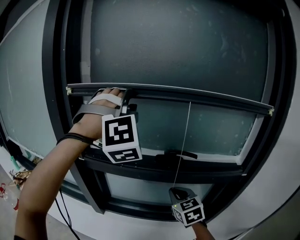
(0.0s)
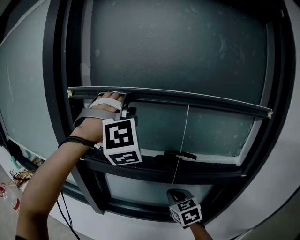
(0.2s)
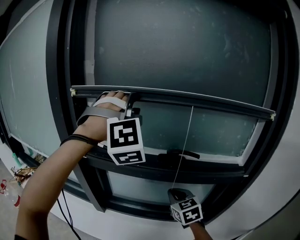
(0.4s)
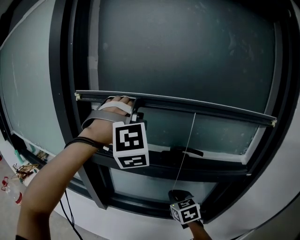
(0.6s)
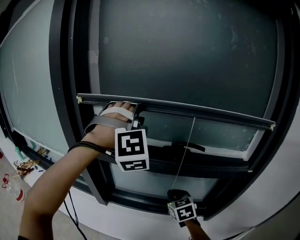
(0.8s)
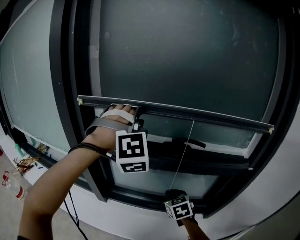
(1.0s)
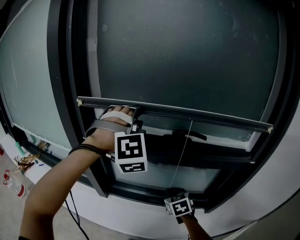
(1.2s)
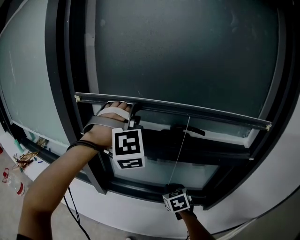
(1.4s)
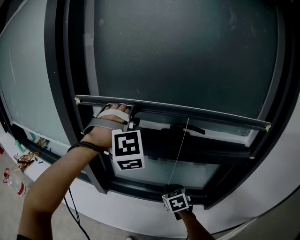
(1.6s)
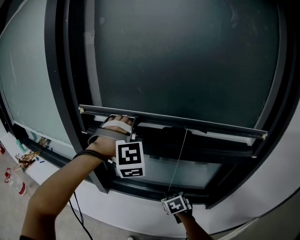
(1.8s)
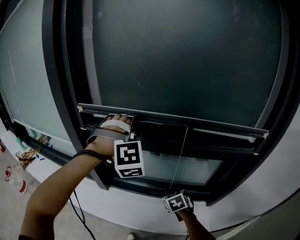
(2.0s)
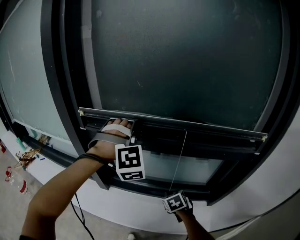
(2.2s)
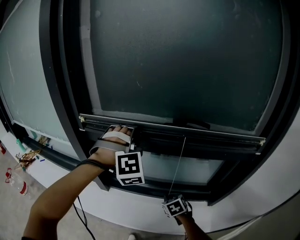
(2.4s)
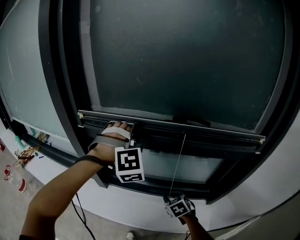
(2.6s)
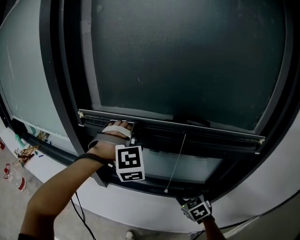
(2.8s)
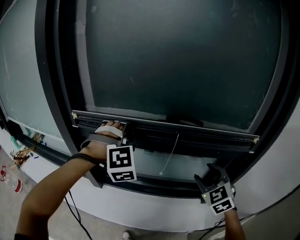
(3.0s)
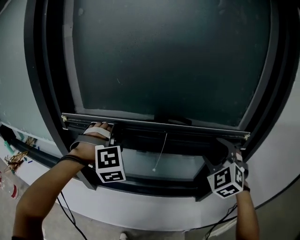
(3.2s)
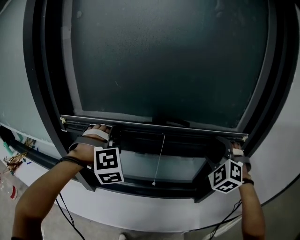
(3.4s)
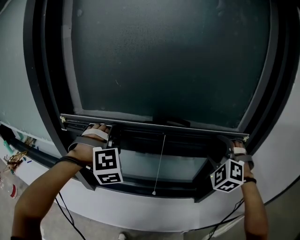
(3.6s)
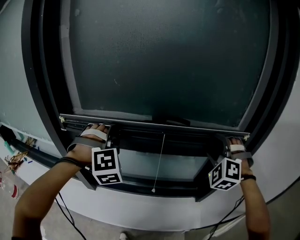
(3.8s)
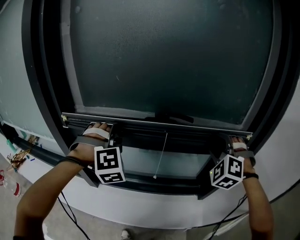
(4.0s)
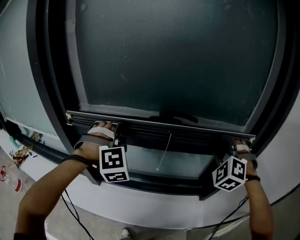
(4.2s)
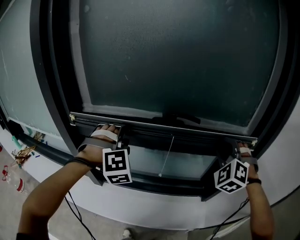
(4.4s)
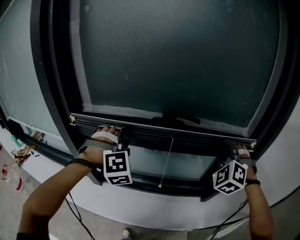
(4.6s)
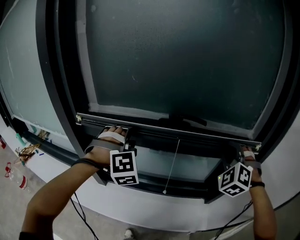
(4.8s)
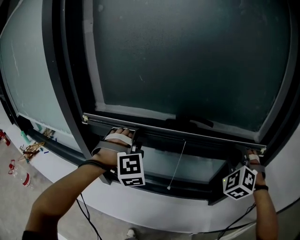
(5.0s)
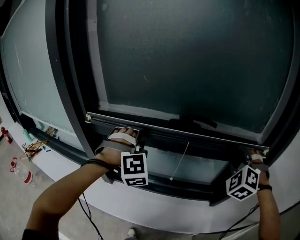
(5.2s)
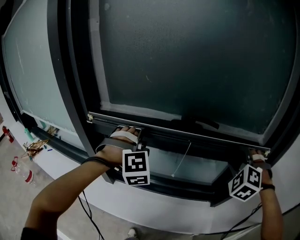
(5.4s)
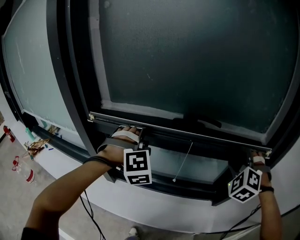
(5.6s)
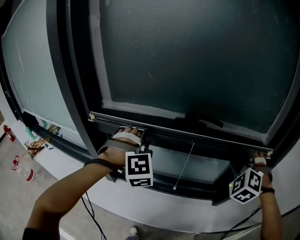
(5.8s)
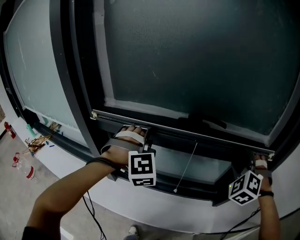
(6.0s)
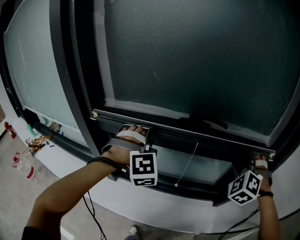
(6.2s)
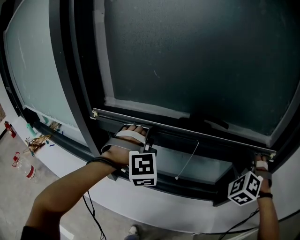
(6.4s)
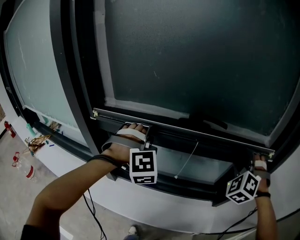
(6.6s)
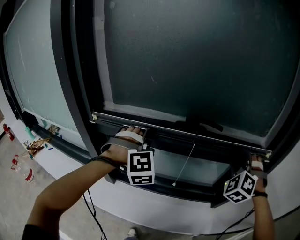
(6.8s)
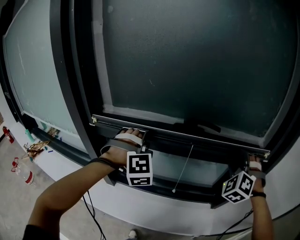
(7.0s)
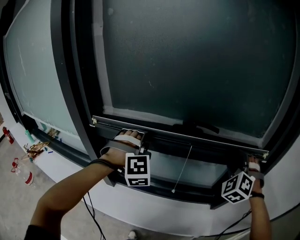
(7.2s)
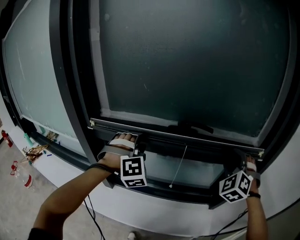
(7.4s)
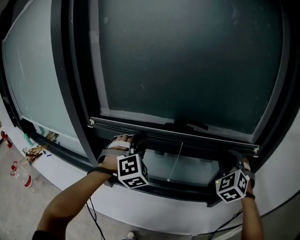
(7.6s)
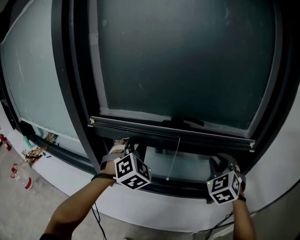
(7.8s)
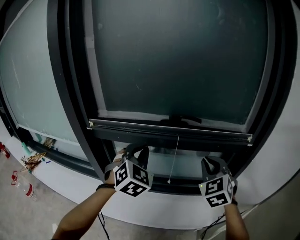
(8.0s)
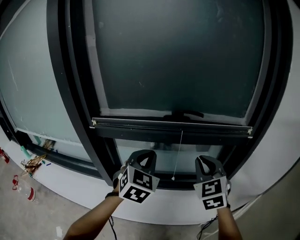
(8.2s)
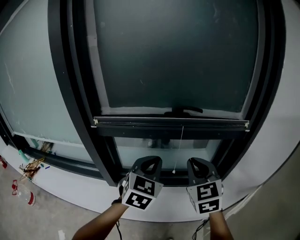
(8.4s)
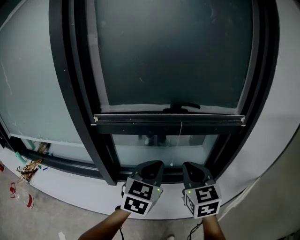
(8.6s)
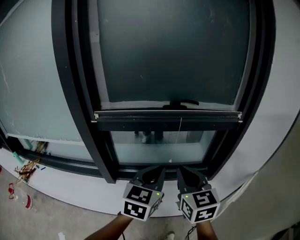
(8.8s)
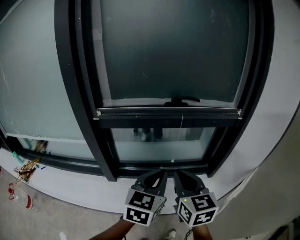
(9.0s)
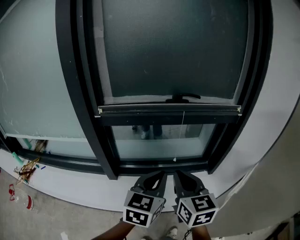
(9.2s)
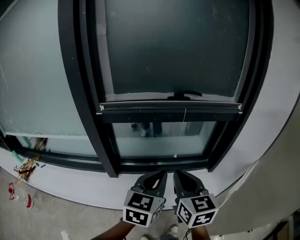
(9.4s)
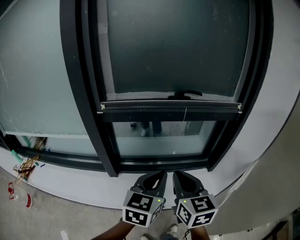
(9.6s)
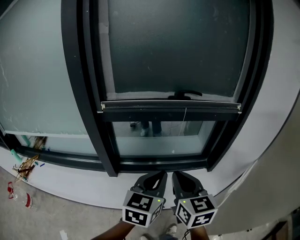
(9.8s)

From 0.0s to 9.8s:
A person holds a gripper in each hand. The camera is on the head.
From 0.0s to 1.4s: Both grippers move downward, about 15 cm.
From 1.4s to 2.8s: The left gripper shifts some 15 cm downward. Meanwhile the right gripper shifts approximately 10 cm backward and to the right, and opens its fingers.
From 2.8s to 4.2s: The right gripper shifts approximately 30 cm upward and to the right, and rolls counterclockwise, seen from behind, by roughly 50 degrees.
From 4.2s to 5.6s: The right gripper closes, then opens again.
From 5.6s to 7.0s: The grippers make only small movements.
From 7.0s to 8.4s: The left gripper goes about 20 cm backward, rolls counterclockwise, seen from behind, by approximately 60 degrees, and closes its fingers, while the right gripper shifts some 25 cm backward and to the left, rotates around the line of its fingers by roughly 50 degrees, clockwise from behind, and closes its fingers.
From 8.4s to 9.8s: The right gripper moves backward and to the left, roughly 25 cm, and swivels some 20 degrees, while the left gripper moves backward, roughly 20 cm, and rotates roughly 20 degrees.

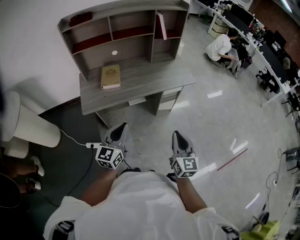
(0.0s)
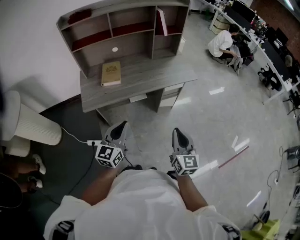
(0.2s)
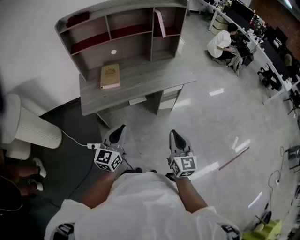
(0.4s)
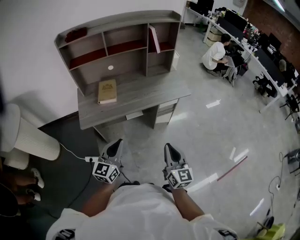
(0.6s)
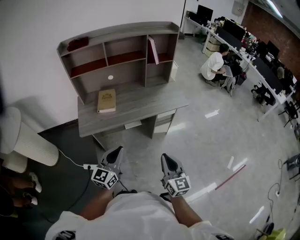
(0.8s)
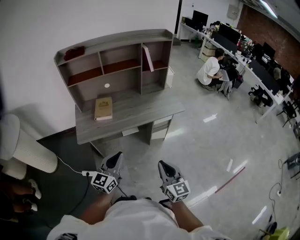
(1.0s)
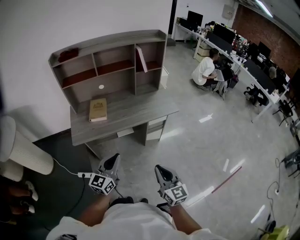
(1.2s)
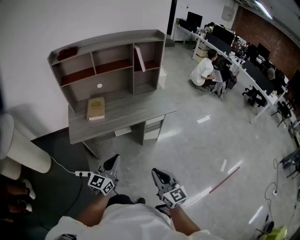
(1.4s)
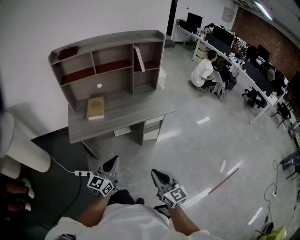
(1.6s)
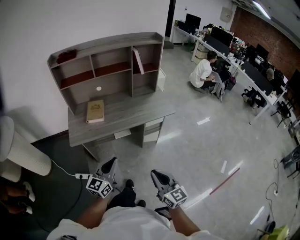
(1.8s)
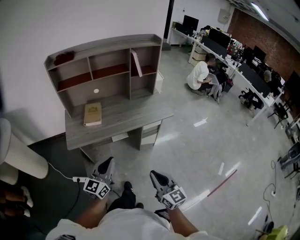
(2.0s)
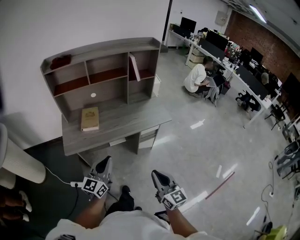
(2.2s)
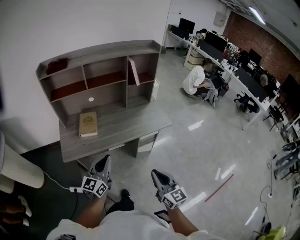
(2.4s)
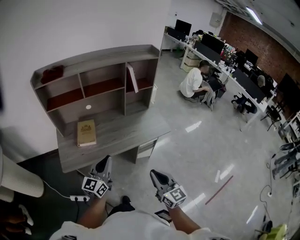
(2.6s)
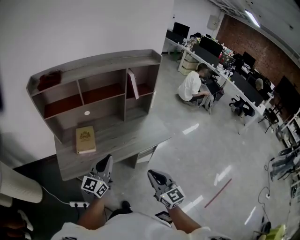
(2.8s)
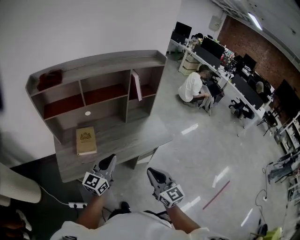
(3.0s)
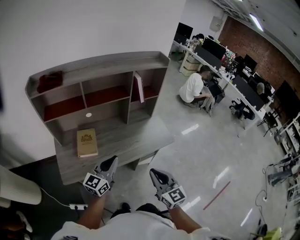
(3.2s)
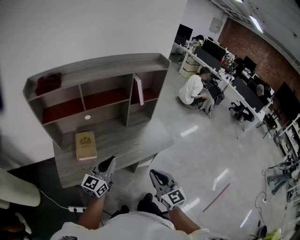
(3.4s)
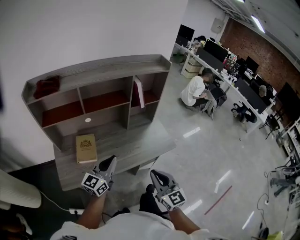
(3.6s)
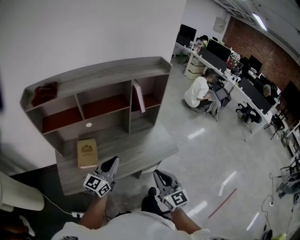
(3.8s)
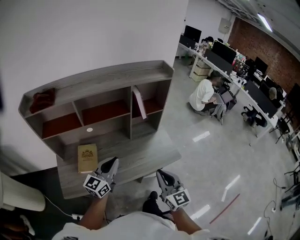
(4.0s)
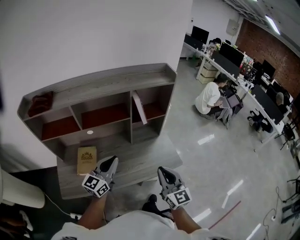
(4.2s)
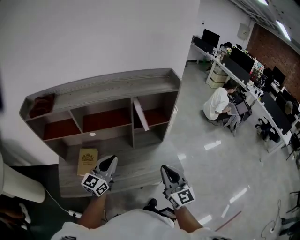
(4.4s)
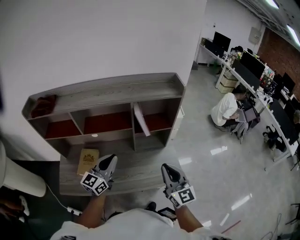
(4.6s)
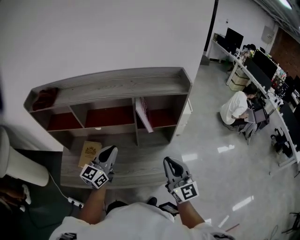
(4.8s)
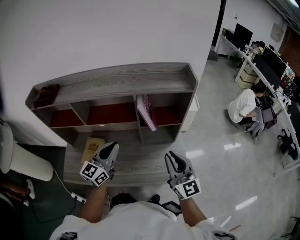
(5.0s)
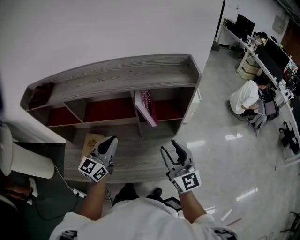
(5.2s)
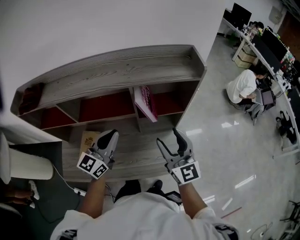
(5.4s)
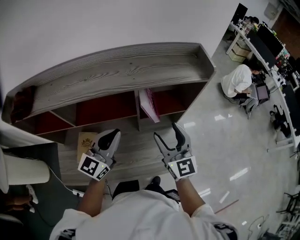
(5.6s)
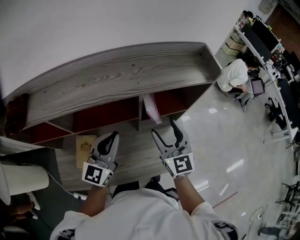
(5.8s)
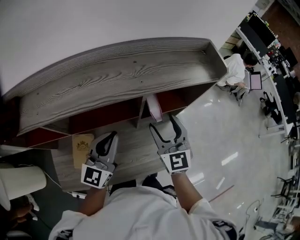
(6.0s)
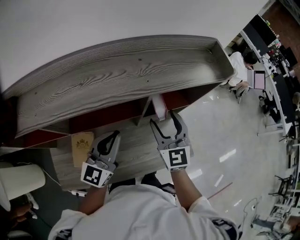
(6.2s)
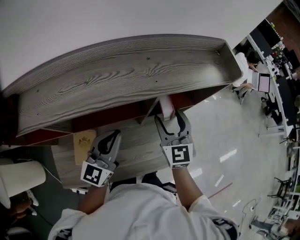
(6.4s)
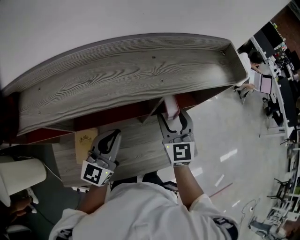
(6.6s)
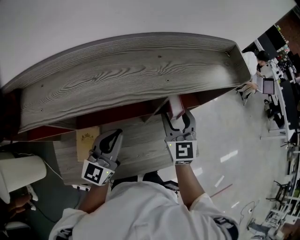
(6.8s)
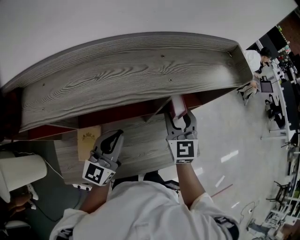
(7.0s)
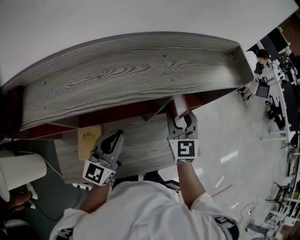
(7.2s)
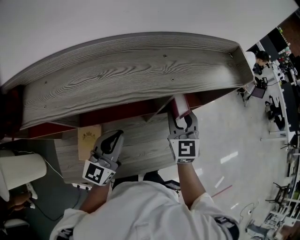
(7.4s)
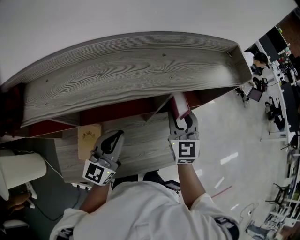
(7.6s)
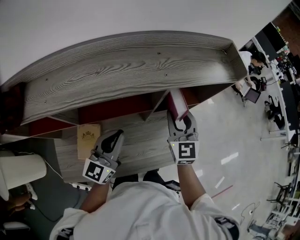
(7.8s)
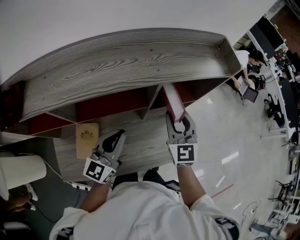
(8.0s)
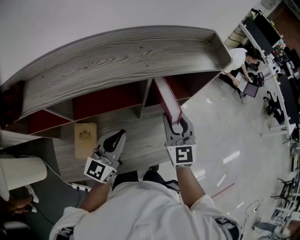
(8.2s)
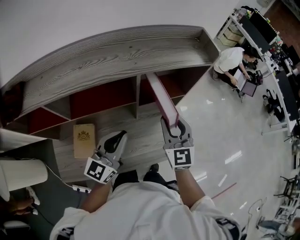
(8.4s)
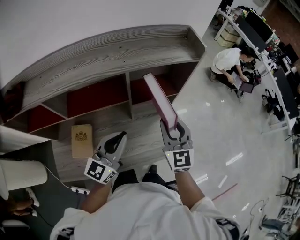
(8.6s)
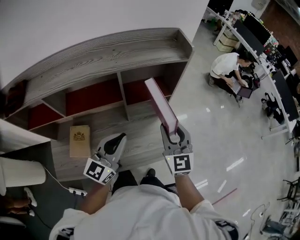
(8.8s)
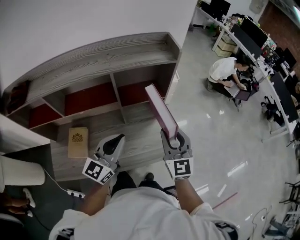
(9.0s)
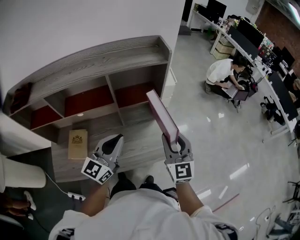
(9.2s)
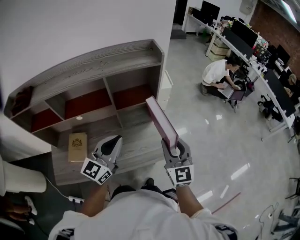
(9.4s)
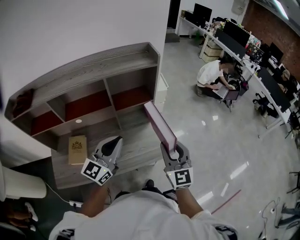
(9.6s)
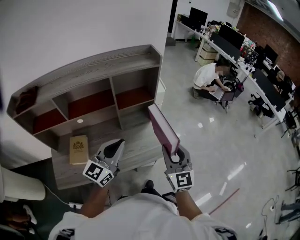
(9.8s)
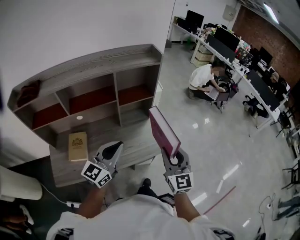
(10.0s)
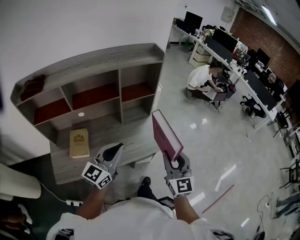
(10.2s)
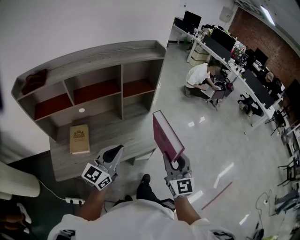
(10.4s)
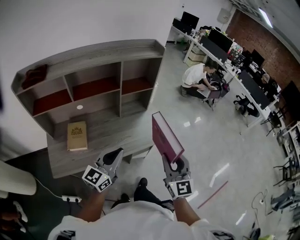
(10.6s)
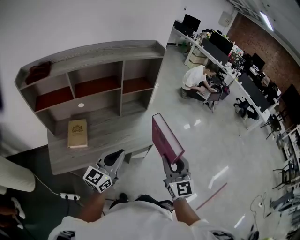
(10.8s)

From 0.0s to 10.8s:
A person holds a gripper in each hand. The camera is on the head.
From 0.0s to 1.6s: The left gripper is displaced to the right by roughly 10 cm, while the right gripper is displaced backward by roughly 5 cm, and changes its angle by roughly 20 degrees.
From 1.6s to 3.0s: Both grippers travel together forward, some 25 cm.
From 3.0s to 4.6s: The left gripper heads forward, covering approximately 25 cm. Meanwhile the right gripper shifts some 30 cm forward and to the right.
From 4.6s to 6.2s: The right gripper moves forward and to the left, approximately 25 cm, rotates approximately 20 degrees, and opens, while the left gripper travels forward by some 15 cm.
From 6.2s to 7.8s: The right gripper closes.
From 7.8s to 9.2s: The two grippers go about 20 cm to the right and backward.
From 9.2s to 10.8s: The two grippers go some 25 cm backward.

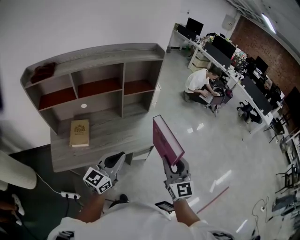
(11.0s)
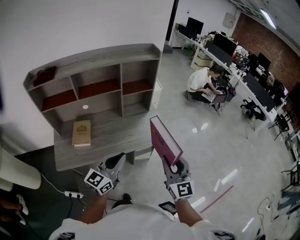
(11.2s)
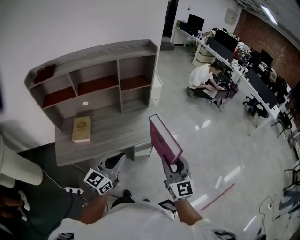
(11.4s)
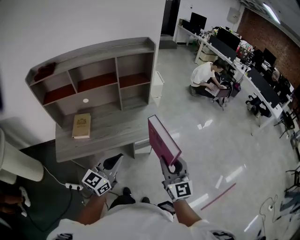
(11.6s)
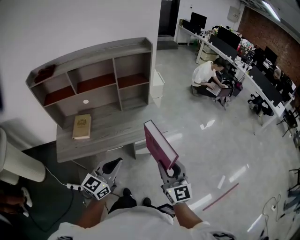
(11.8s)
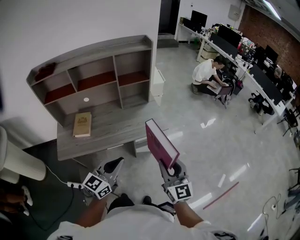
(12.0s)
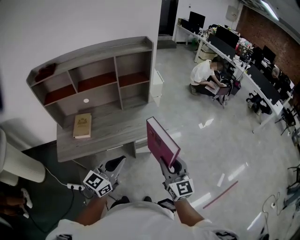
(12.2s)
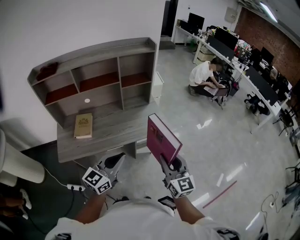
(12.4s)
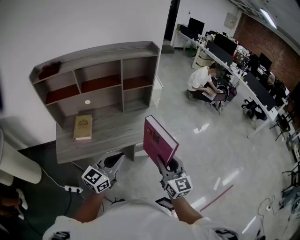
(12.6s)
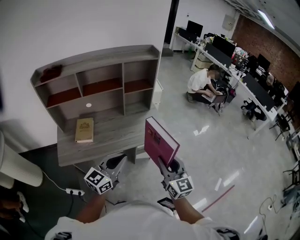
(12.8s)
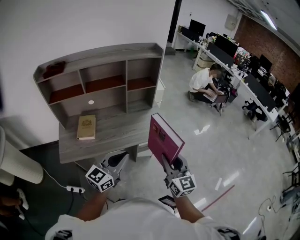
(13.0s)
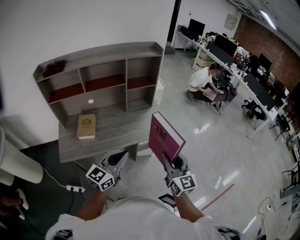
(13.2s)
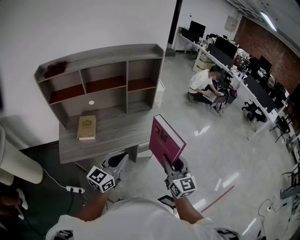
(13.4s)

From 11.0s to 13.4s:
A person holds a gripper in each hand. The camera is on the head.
From 11.0s to 12.2s: The two grippers go roughly 10 cm to the right and backward.
From 12.2s to 13.4s: The grippers both shift to the left by roughly 5 cm.
